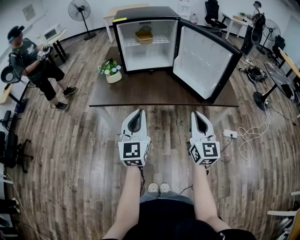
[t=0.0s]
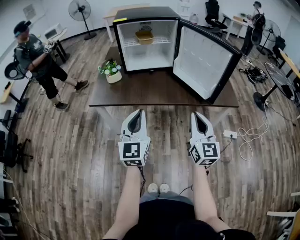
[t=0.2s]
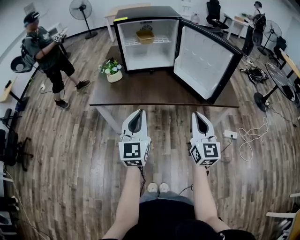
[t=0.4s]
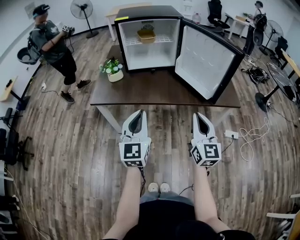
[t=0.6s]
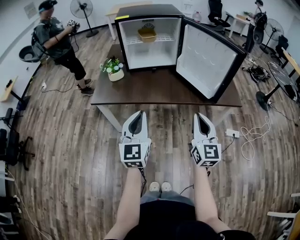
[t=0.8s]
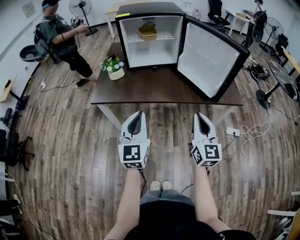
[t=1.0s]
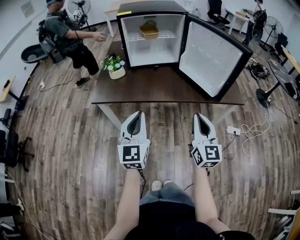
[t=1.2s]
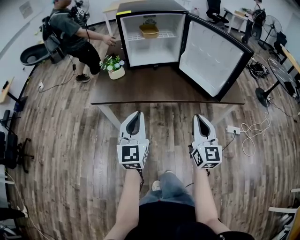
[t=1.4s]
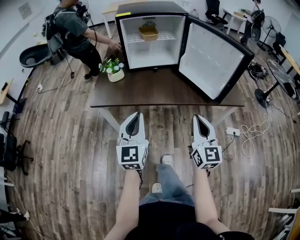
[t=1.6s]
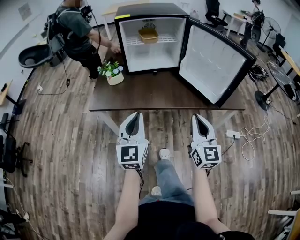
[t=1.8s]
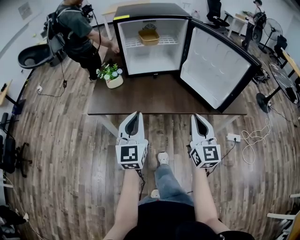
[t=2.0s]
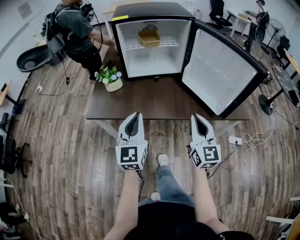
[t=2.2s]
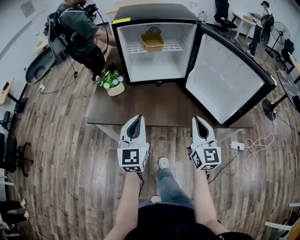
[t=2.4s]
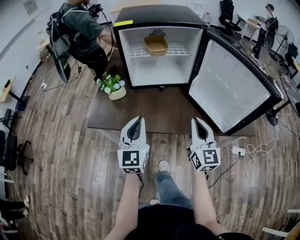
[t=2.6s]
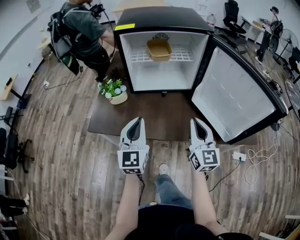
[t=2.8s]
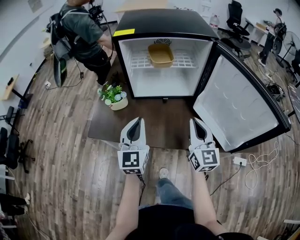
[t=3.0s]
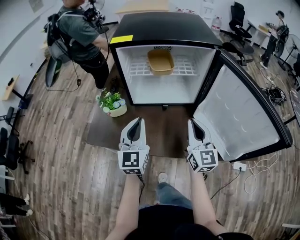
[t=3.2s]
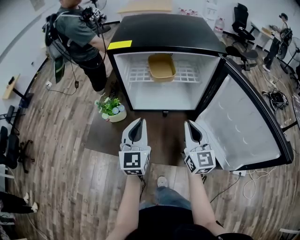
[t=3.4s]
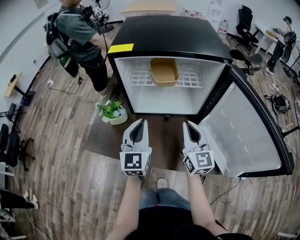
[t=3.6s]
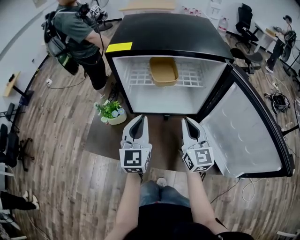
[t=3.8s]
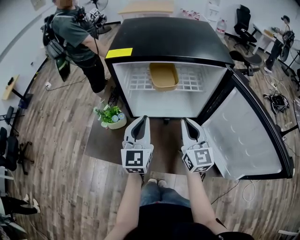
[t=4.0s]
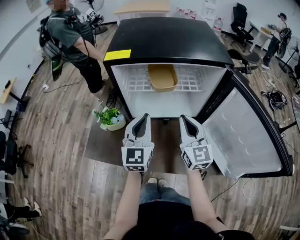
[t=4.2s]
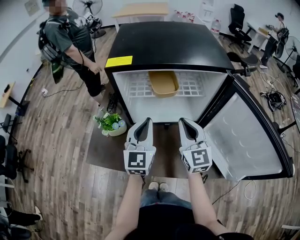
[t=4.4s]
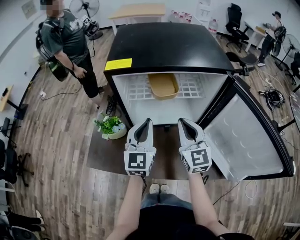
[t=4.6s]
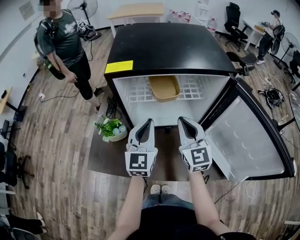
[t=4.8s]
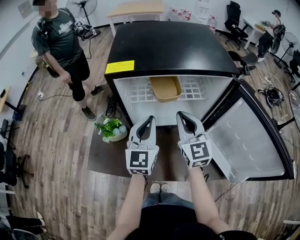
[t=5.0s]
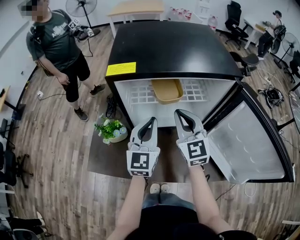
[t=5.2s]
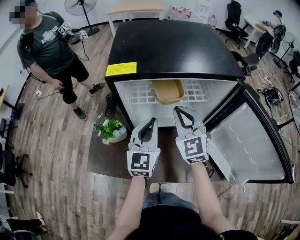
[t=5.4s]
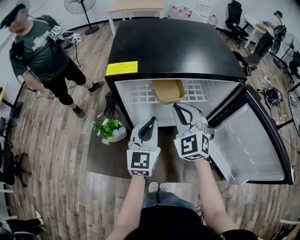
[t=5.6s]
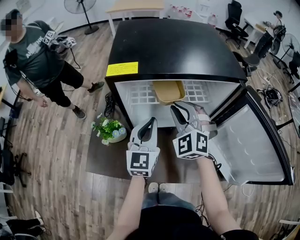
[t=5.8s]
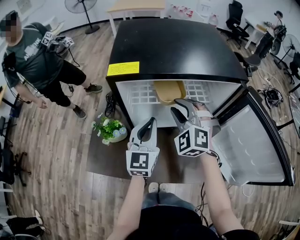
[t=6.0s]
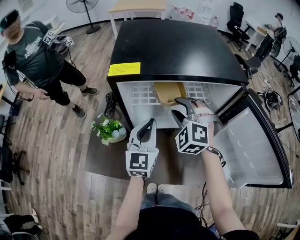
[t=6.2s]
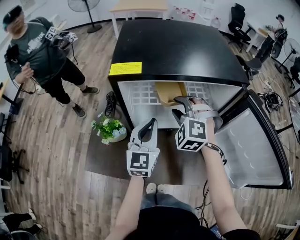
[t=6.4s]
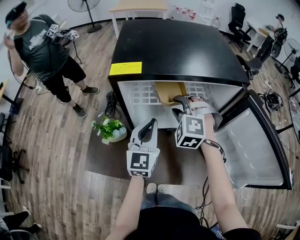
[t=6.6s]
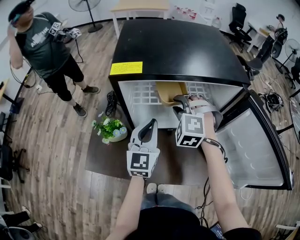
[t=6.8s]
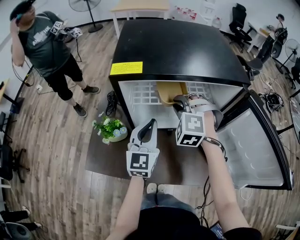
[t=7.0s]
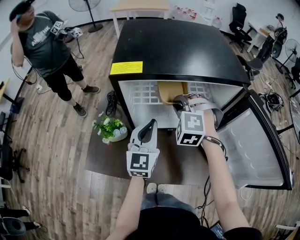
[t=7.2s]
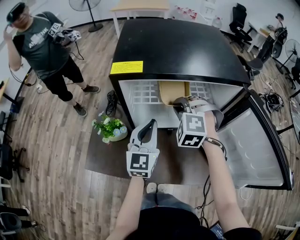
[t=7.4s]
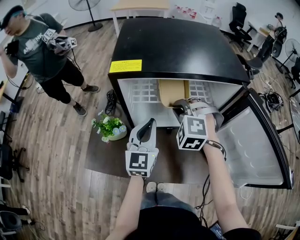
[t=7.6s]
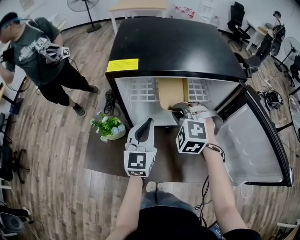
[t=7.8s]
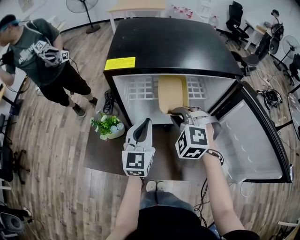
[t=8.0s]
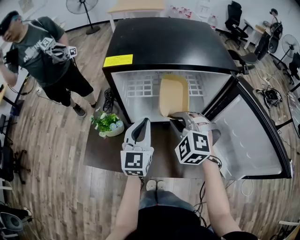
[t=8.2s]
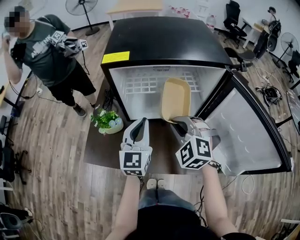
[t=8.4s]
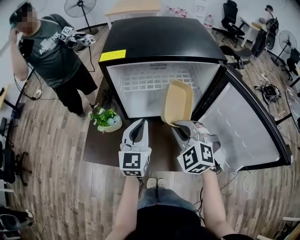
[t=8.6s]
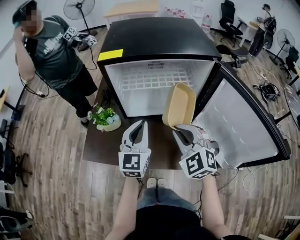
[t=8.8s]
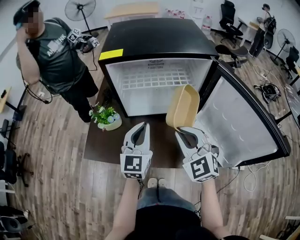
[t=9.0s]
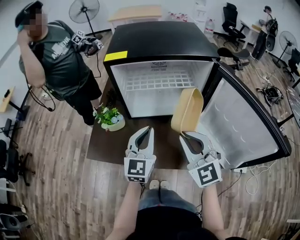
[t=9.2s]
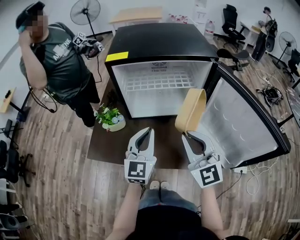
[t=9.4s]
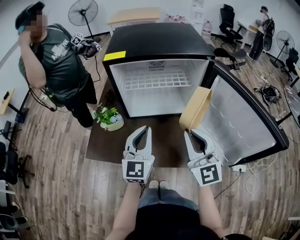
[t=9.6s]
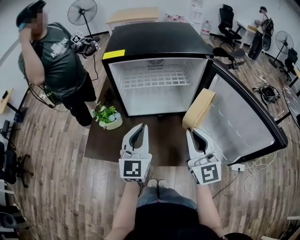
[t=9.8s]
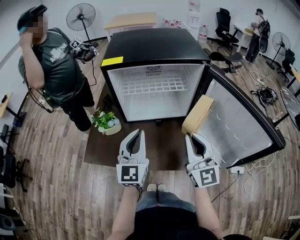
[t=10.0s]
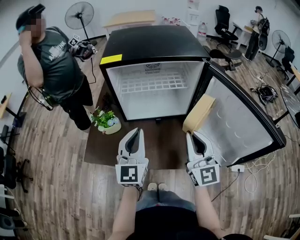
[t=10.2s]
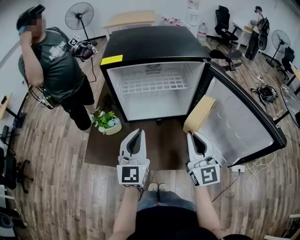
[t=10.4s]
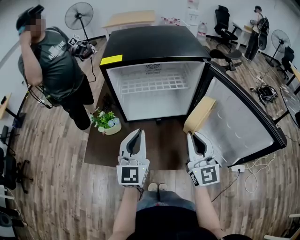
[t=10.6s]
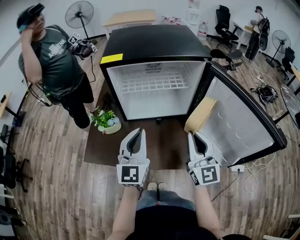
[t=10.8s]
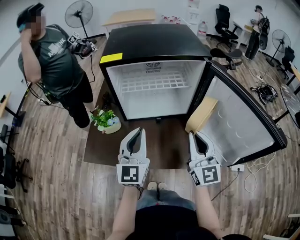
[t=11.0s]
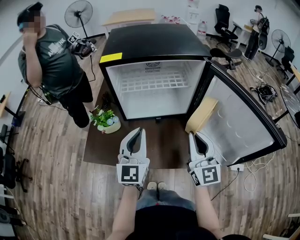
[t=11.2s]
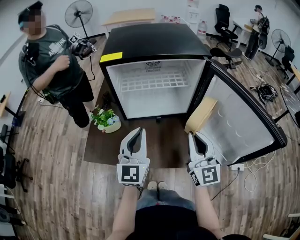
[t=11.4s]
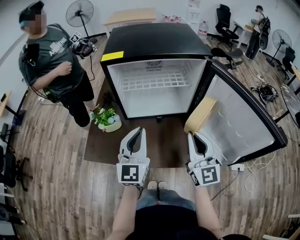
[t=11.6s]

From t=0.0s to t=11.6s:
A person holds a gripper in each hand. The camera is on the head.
From t=0.0s to t=1.4s: The left gripper moves about 5 cm.
From t=1.4s to t=2.8s: Both grippers travel together forward, about 25 cm.
From t=2.8s to t=4.4s: Both grippers travel together forward, roughly 20 cm.
From t=4.4s to t=5.8s: The right gripper shifts approximately 10 cm forward and to the left, and rolls counterclockwise, seen from behind, by roughly 50 degrees.
From t=5.8s to t=7.2s: The right gripper rotates roughly 30 degrees, and opens, then closes again.
From t=7.2s to t=8.8s: The right gripper goes approximately 20 cm backward, and changes its angle by some 40 degrees, while the left gripper shifts about 10 cm backward.
From t=8.8s to t=10.2s: The right gripper is displaced to the right and backward by approximately 10 cm, and angles its fingers upward, by about 40 degrees; the left gripper travels backward by roughly 5 cm.
From t=10.2s to t=11.6s: There are only small adjustments of the grippers.

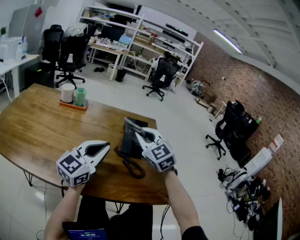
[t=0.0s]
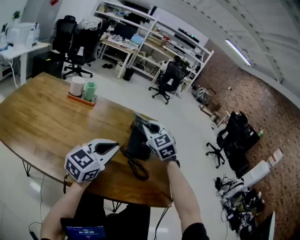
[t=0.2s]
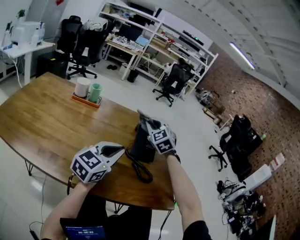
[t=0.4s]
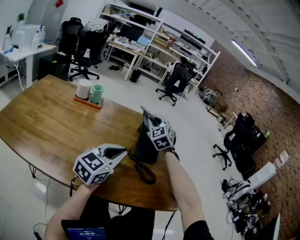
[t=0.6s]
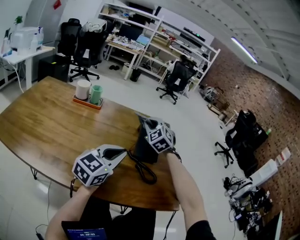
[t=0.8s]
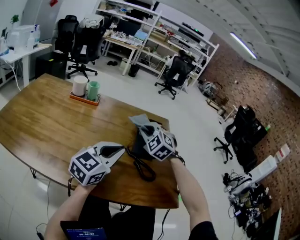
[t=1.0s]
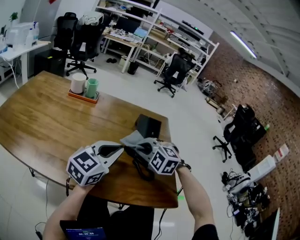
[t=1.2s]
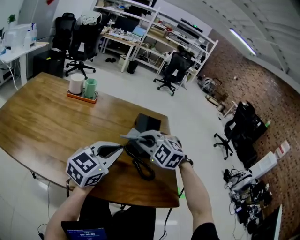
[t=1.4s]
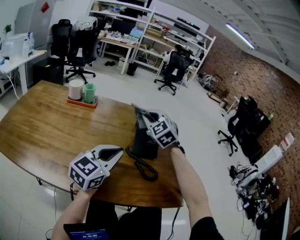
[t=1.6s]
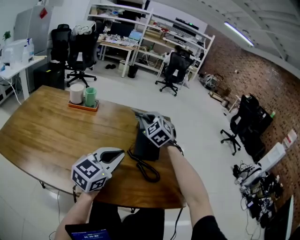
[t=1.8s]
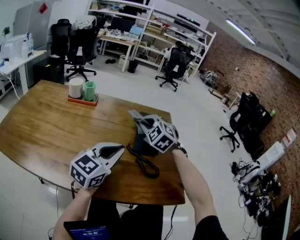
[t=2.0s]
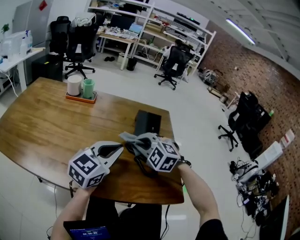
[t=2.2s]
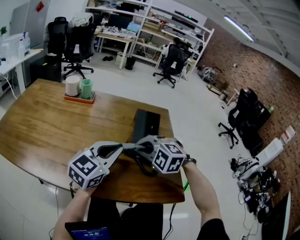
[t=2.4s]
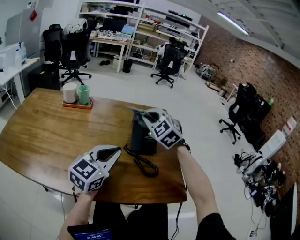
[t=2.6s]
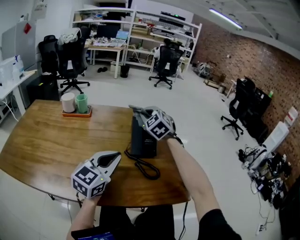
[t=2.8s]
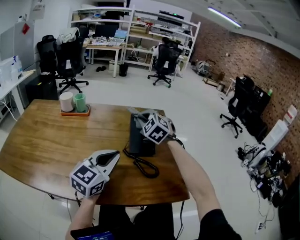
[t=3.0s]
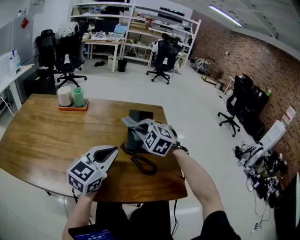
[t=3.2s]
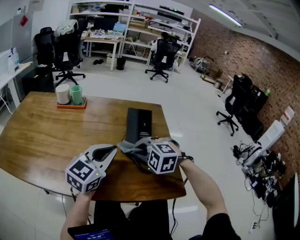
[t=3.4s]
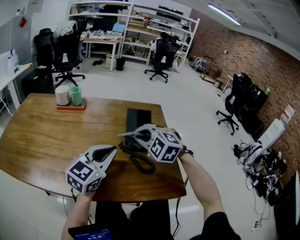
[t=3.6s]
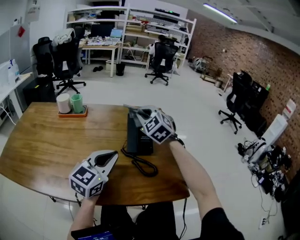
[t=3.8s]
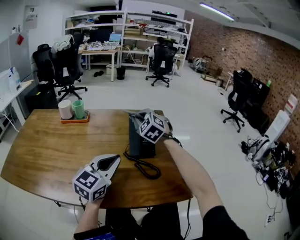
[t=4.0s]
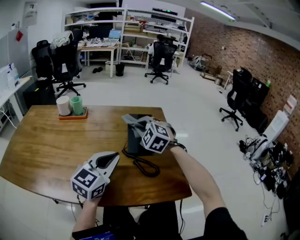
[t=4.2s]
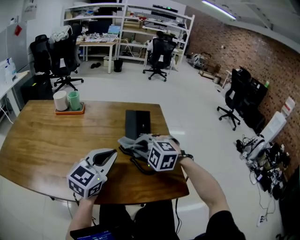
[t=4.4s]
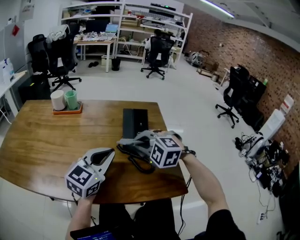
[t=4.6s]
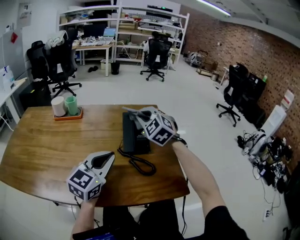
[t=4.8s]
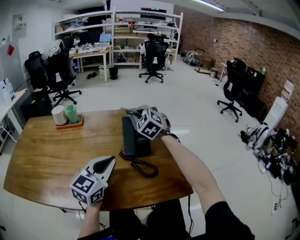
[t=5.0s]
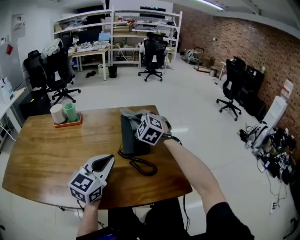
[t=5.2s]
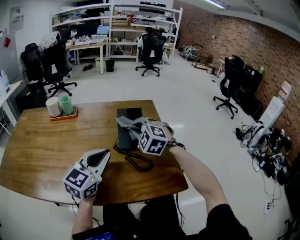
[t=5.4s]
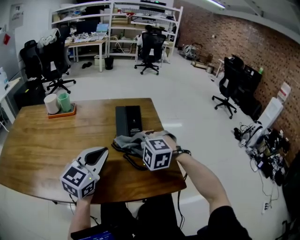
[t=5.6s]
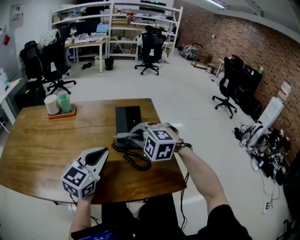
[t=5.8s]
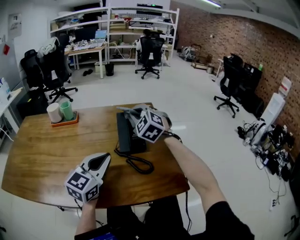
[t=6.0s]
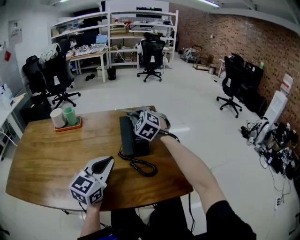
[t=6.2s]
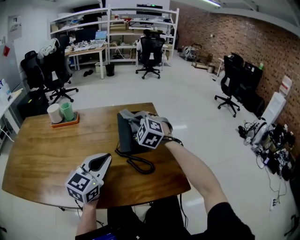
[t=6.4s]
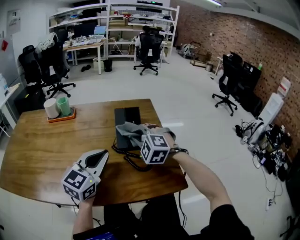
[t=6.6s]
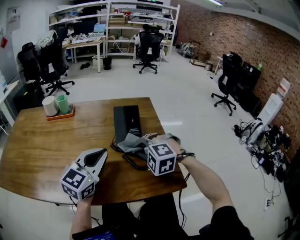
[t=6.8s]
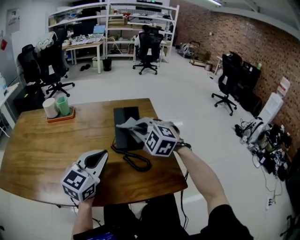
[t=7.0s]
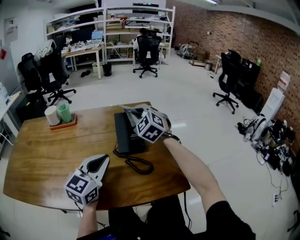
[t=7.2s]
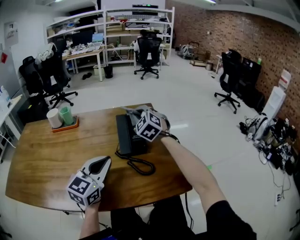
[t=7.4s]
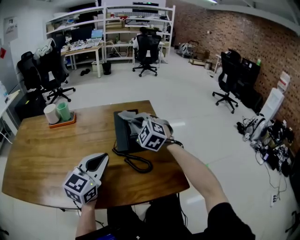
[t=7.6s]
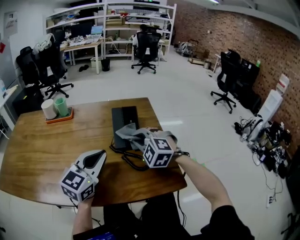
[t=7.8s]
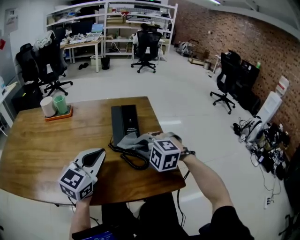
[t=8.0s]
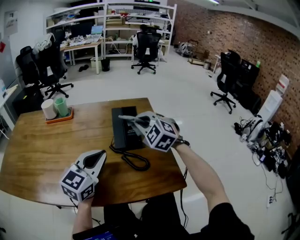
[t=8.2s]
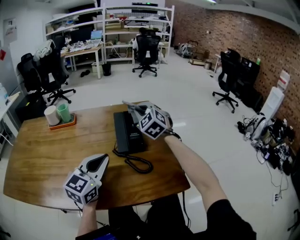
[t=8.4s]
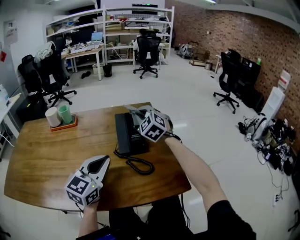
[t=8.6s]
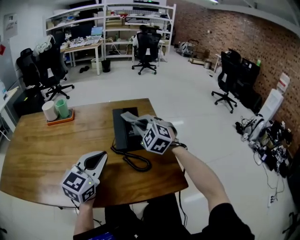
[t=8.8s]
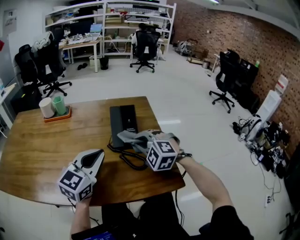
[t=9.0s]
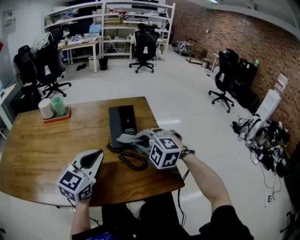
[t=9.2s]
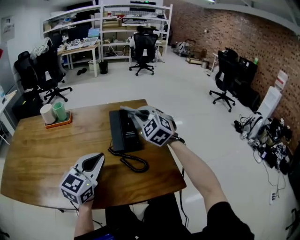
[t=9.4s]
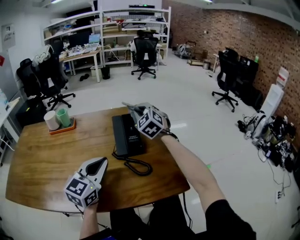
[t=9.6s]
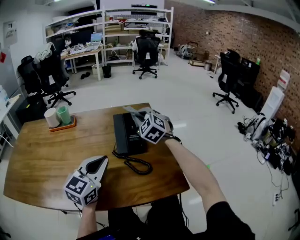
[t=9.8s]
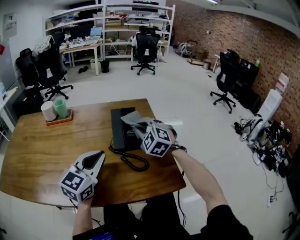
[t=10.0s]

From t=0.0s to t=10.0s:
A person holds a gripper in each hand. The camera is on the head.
From t=0.0s to t=1.4s: The right gripper travels downward by approximately 10 cm, reaches about 15 cm forward, then returns, and swivels about 30 degrees.
From t=1.4s to t=2.8s: The right gripper moves forward and backward over roughly 20 cm, changing direction 2 times, and changes its angle by some 30 degrees.
From t=2.8s to t=4.2s: The right gripper goes forward and backward, some 20 cm each way, reversing 2 times.
From t=4.2s to t=5.8s: The right gripper moves forward and backward over about 20 cm, changing direction 2 times.
From t=5.8s to t=7.2s: The right gripper moves forward and backward over about 20 cm, changing direction 2 times, and swivels roughly 30 degrees.
From t=7.2s to t=8.6s: The right gripper travels backward and back again, some 15 cm each way.
From t=8.6s to t=10.0s: The right gripper moves forward and backward over some 20 cm, changing direction 2 times.

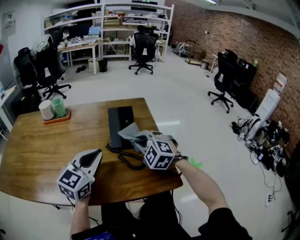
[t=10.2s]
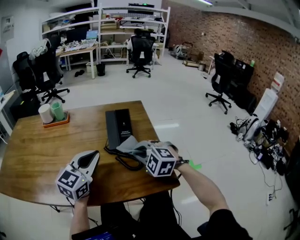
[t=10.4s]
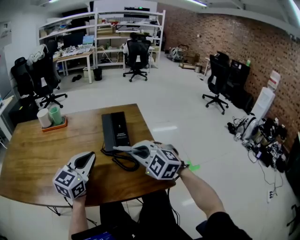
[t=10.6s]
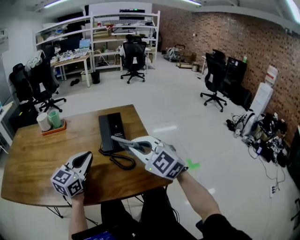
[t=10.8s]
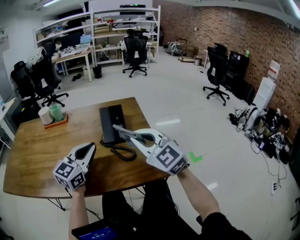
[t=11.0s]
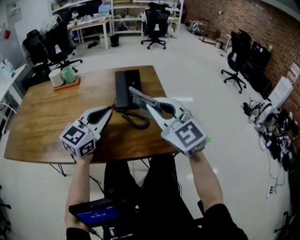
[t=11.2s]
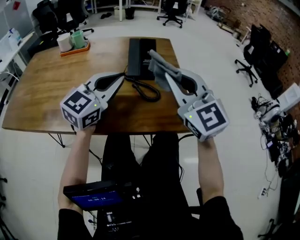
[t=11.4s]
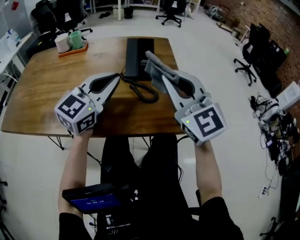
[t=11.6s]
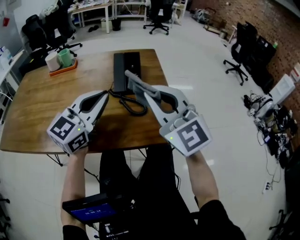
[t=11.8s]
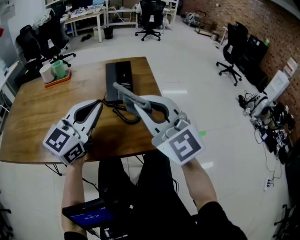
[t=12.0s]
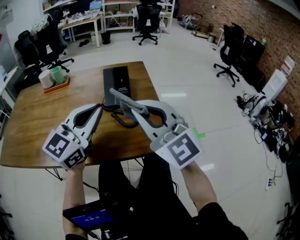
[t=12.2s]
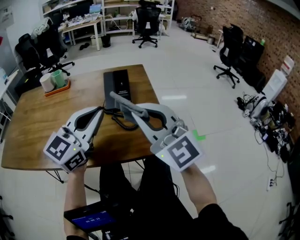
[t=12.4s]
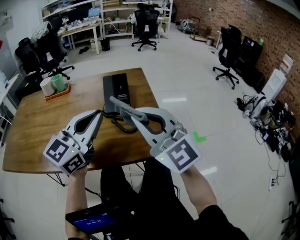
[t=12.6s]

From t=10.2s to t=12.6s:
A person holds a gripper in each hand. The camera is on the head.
From t=10.2s to t=11.4s: The right gripper is displaced upward and backward by about 20 cm, and points its fingers about 30 degrees further upward.
From t=11.4s to t=12.6s: The left gripper goes approximately 5 cm upward and backward. Meanwhile the right gripper is displaced backward by about 5 cm.
